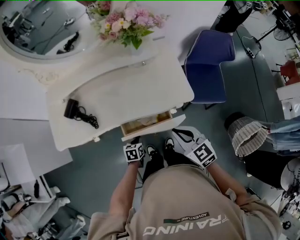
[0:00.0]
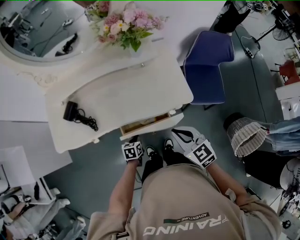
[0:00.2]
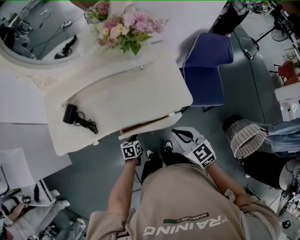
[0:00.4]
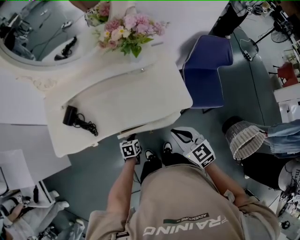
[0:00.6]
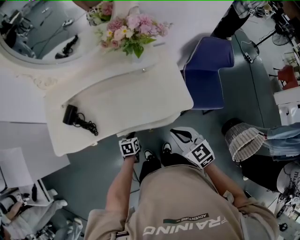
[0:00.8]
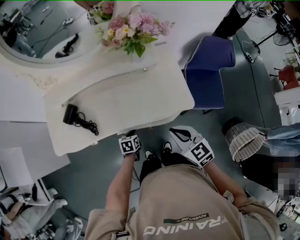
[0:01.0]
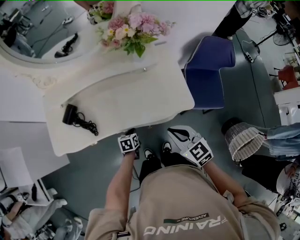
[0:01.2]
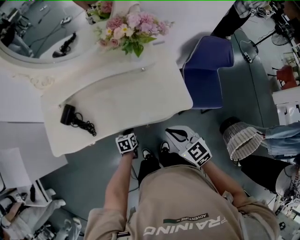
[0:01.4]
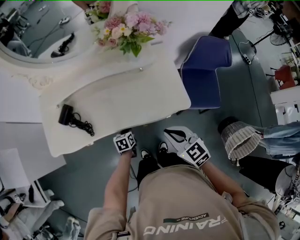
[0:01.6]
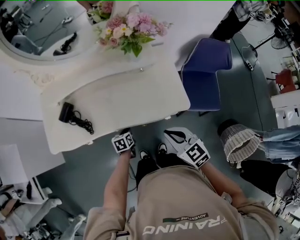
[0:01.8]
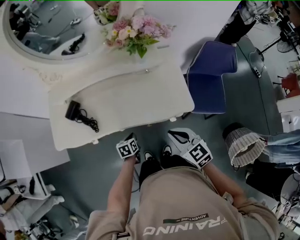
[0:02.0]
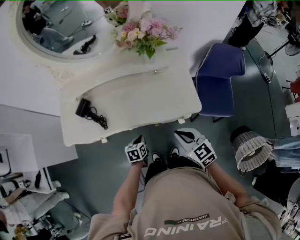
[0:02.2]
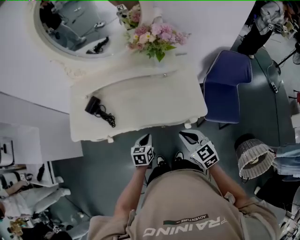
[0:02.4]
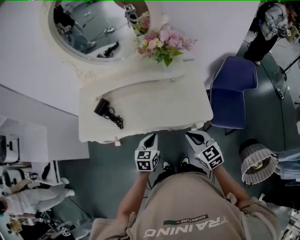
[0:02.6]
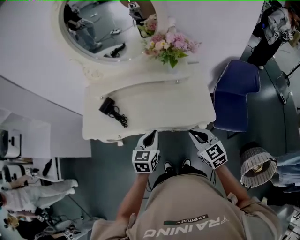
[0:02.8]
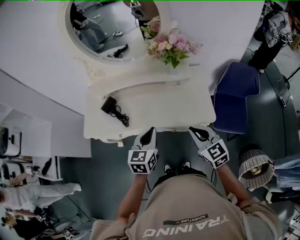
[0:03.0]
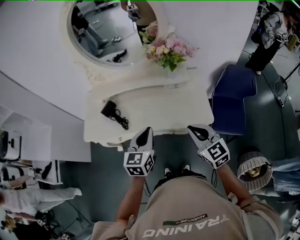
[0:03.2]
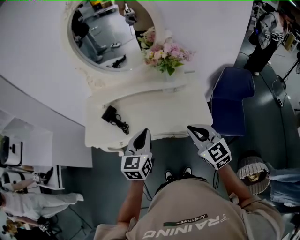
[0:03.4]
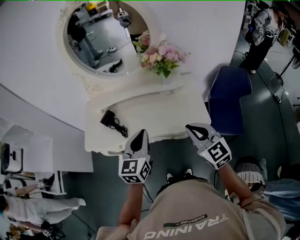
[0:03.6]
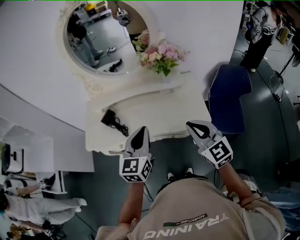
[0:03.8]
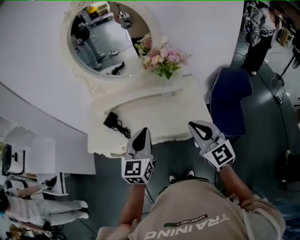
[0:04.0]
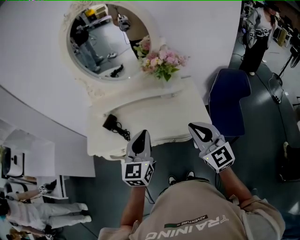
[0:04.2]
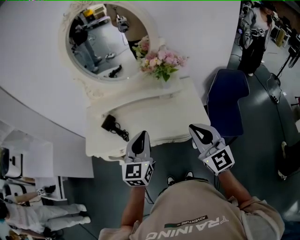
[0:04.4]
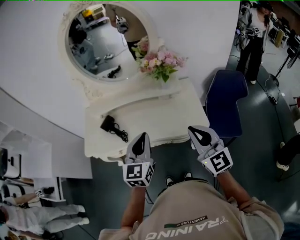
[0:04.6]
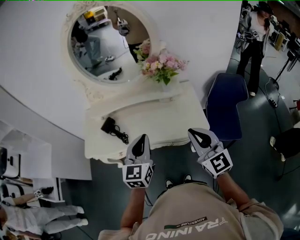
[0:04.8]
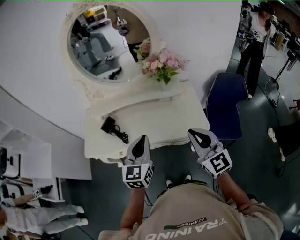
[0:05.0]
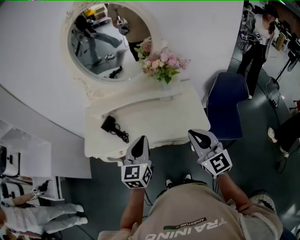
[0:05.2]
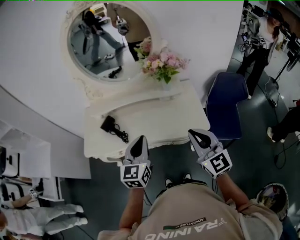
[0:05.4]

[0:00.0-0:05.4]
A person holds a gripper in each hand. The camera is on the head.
0:00.0 to 0:01.4: The right gripper changes place by roughly 5 cm, while the left gripper goes some 10 cm forward.
0:01.4 to 0:02.8: The left gripper goes approximately 25 cm upward, and changes its angle by about 30 degrees.
0:02.8 to 0:04.0: Both grippers travel together upward, some 15 cm. The right gripper turns by about 20 degrees, while the left gripper rotates roughly 20 degrees.
0:04.0 to 0:05.4: The grippers stay close to where they were, moving slightly.

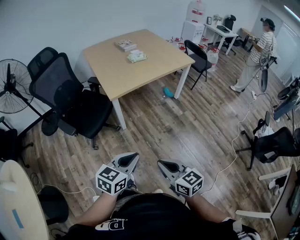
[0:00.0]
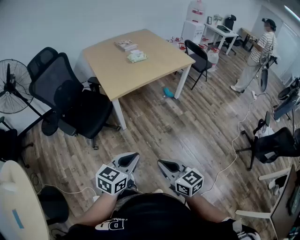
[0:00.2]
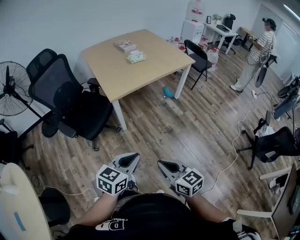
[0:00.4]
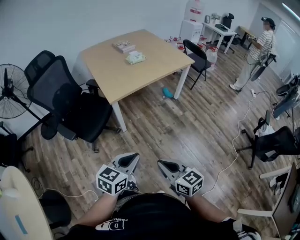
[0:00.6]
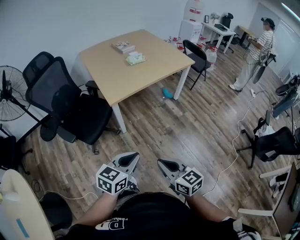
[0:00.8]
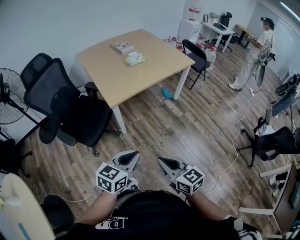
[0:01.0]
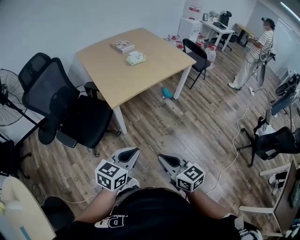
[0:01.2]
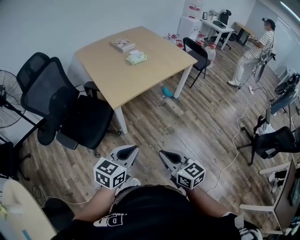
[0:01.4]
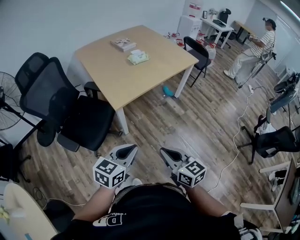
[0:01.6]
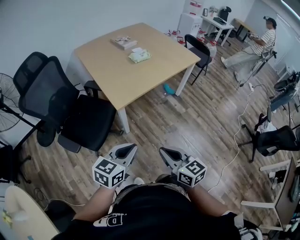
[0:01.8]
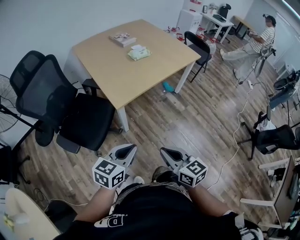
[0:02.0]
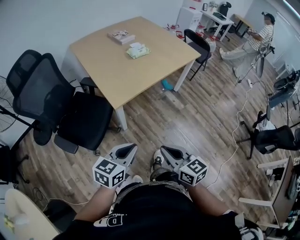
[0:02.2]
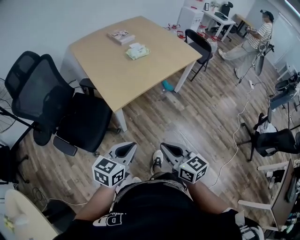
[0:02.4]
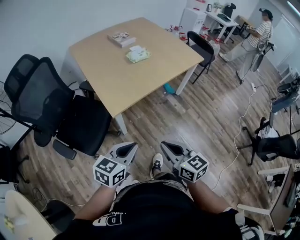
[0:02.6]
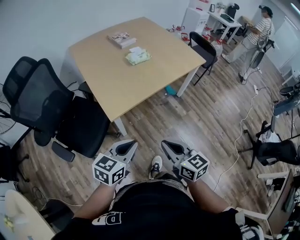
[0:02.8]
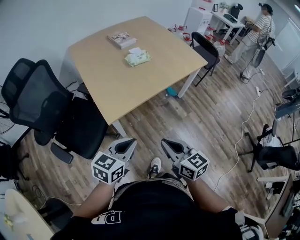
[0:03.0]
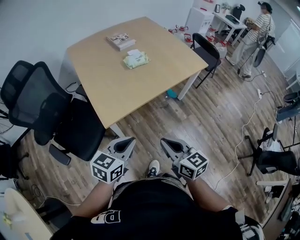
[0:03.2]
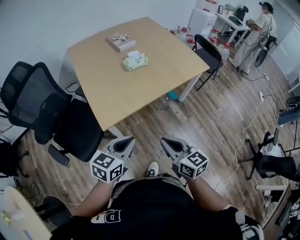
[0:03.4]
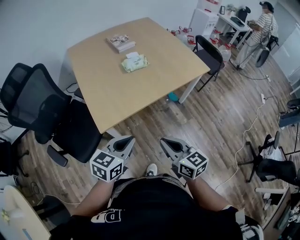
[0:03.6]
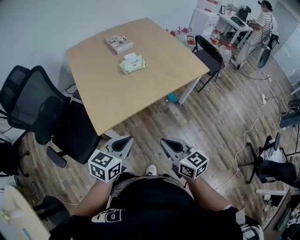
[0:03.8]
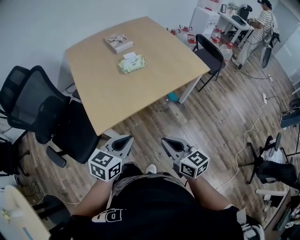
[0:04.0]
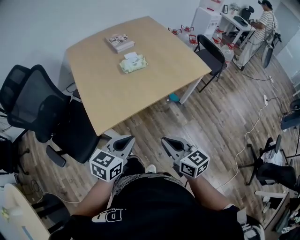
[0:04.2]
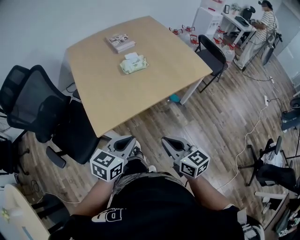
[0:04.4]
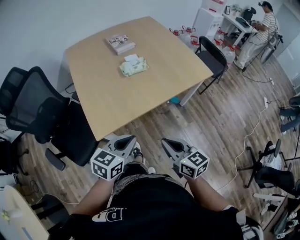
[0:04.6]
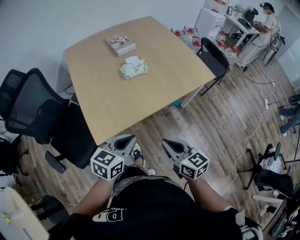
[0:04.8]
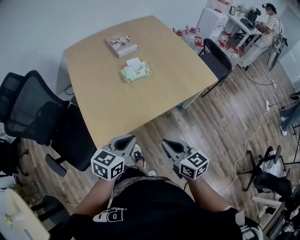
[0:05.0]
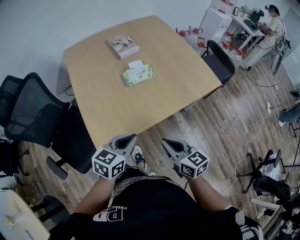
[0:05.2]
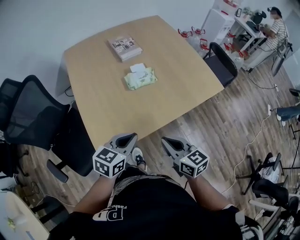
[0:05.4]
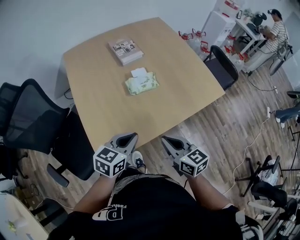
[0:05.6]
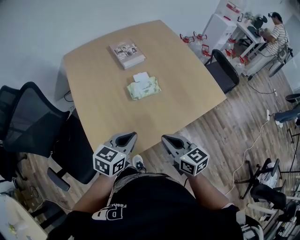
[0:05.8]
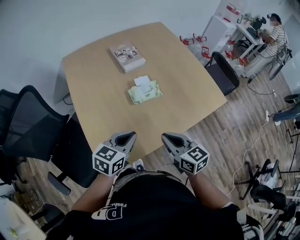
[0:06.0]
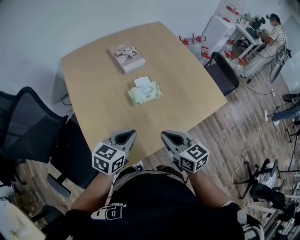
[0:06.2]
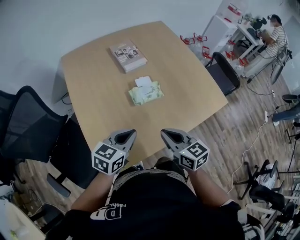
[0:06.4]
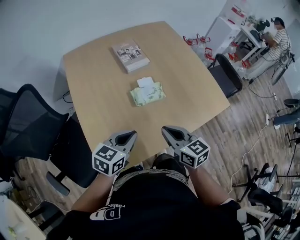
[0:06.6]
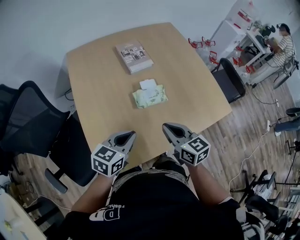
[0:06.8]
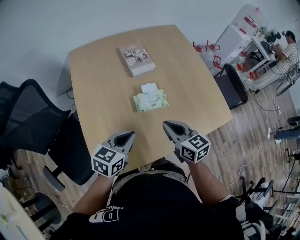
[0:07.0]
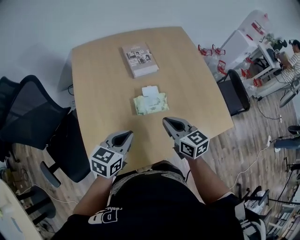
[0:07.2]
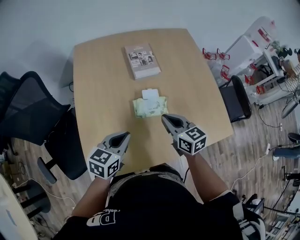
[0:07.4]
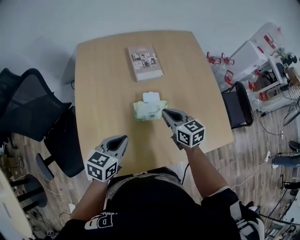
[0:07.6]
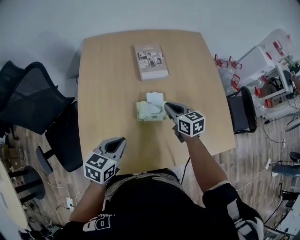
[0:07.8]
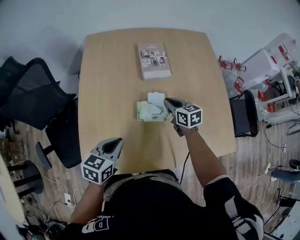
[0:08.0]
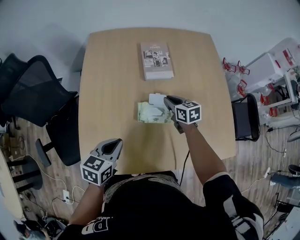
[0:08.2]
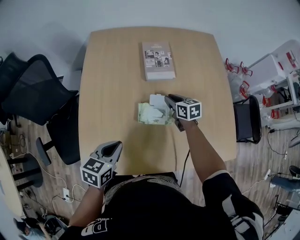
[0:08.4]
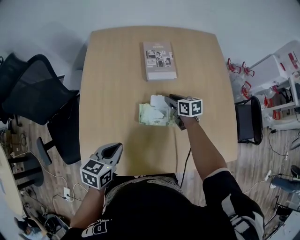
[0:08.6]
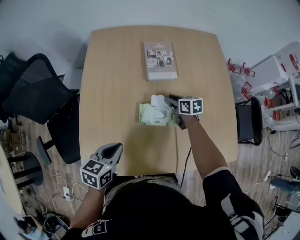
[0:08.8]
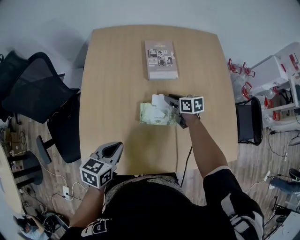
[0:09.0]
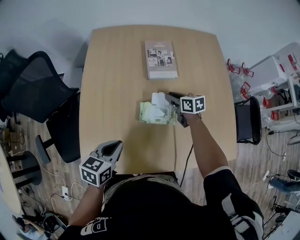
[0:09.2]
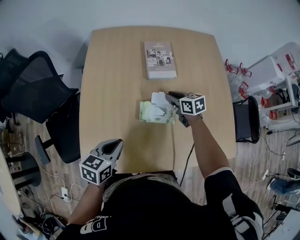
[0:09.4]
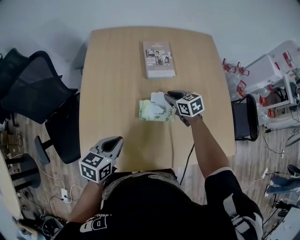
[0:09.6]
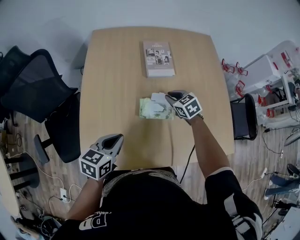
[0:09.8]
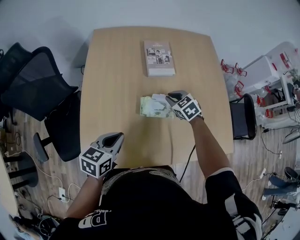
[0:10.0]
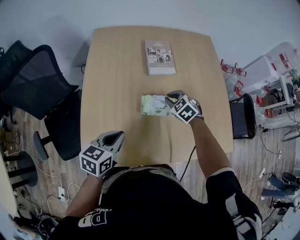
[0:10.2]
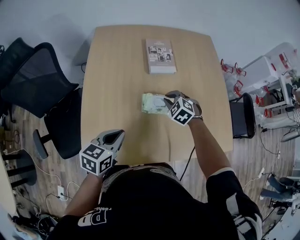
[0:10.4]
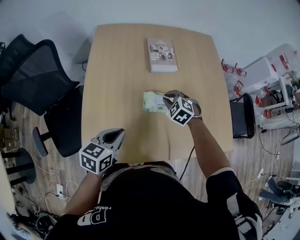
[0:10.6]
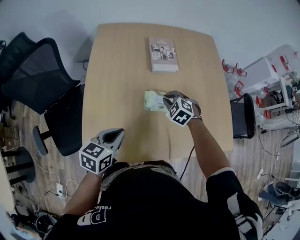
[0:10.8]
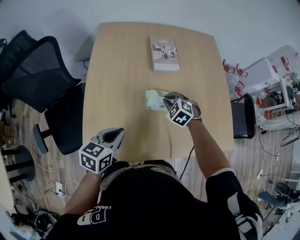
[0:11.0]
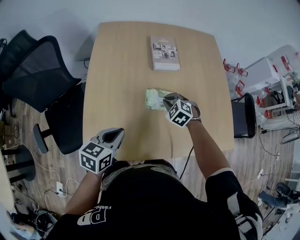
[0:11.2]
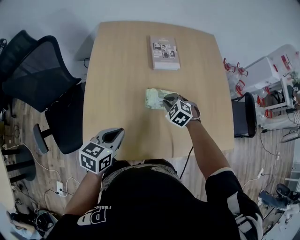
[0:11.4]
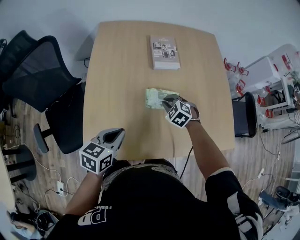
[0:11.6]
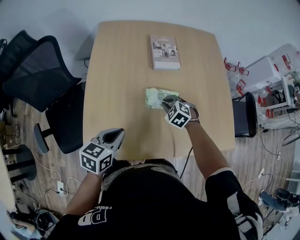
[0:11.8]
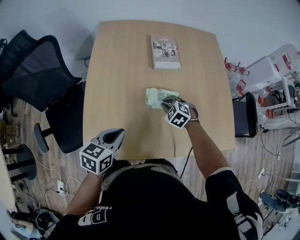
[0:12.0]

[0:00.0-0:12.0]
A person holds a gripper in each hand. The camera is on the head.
0:00.0 to 0:01.6: Both grippers move forward and to the left, some 20 cm.
0:01.6 to 0:03.0: The grippers both shift forward by roughly 20 cm.
0:03.0 to 0:04.4: The grippers both shift forward and to the right by approximately 15 cm.
0:04.4 to 0:06.0: The two grippers go about 25 cm forward.
0:06.0 to 0:07.6: The right gripper heads forward, covering roughly 25 cm; the left gripper shifts approximately 10 cm forward, and turns by roughly 20 degrees.
0:07.6 to 0:09.0: The right gripper travels downward and forward by roughly 20 cm, swivels about 20 degrees, and opens.
0:09.0 to 0:10.4: The right gripper heads backward and upward, covering about 10 cm, and twists some 60 degrees counterclockwise, seen from behind.
0:10.4 to 0:12.0: The right gripper changes place by approximately 5 cm.

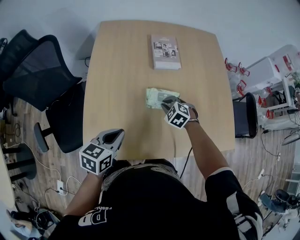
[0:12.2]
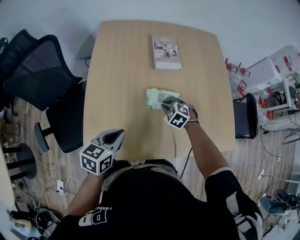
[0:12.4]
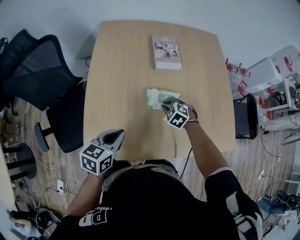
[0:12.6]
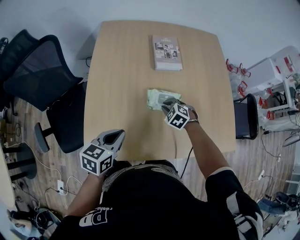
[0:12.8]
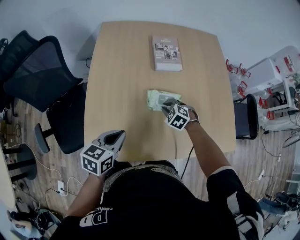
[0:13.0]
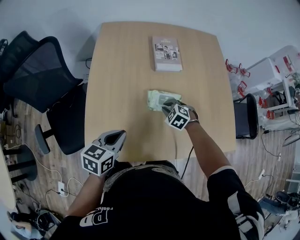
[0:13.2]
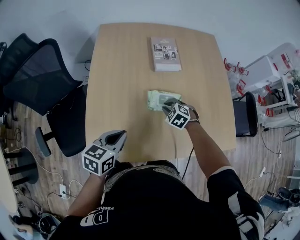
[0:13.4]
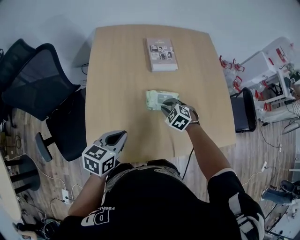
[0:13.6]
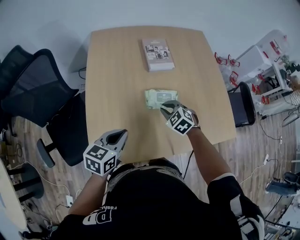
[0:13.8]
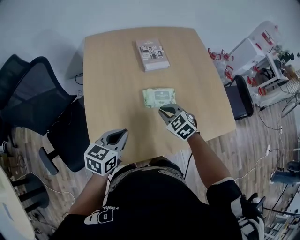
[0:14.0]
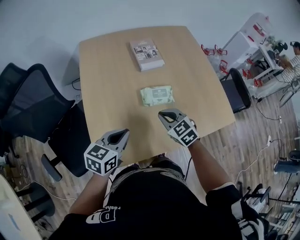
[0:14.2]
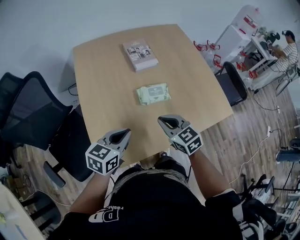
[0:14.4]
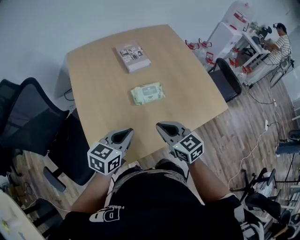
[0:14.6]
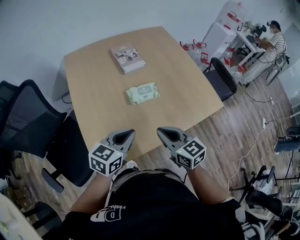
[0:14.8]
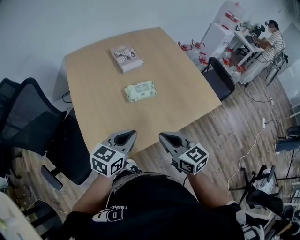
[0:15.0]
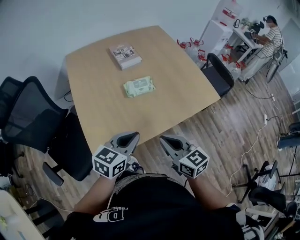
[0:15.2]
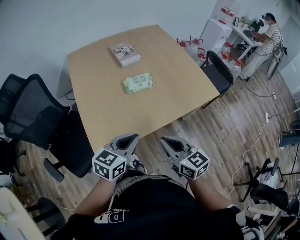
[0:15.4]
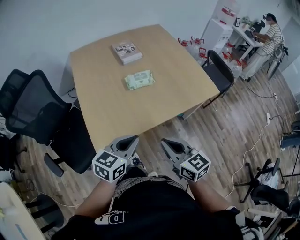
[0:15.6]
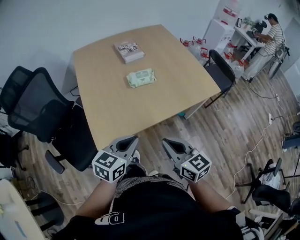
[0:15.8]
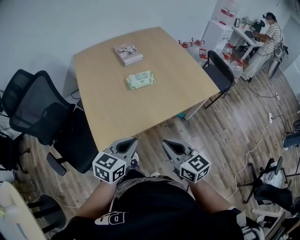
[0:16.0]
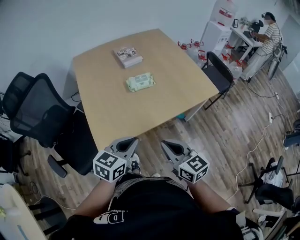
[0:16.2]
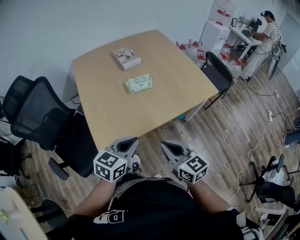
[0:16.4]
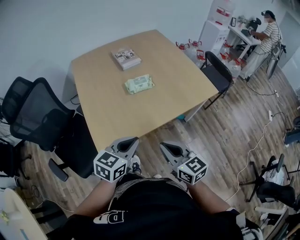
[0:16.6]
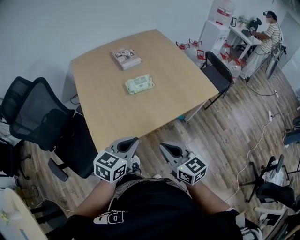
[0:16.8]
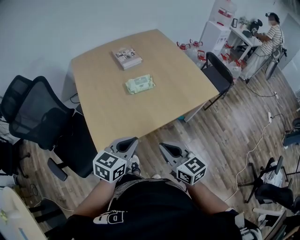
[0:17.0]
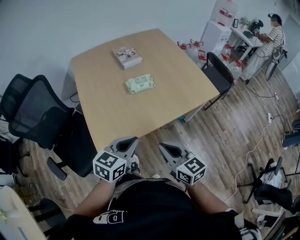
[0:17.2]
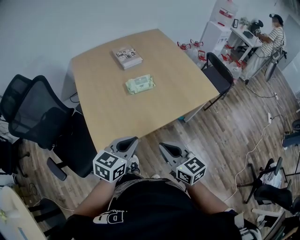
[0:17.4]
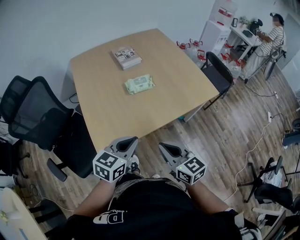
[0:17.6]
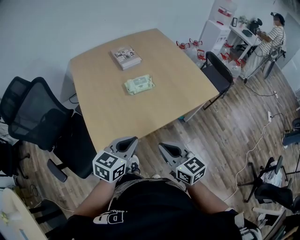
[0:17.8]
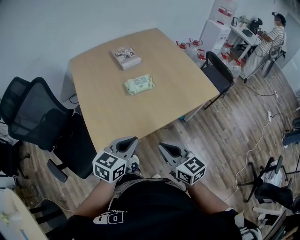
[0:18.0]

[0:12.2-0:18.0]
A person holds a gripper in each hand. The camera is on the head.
0:12.2 to 0:13.6: The grippers stay close to where they were, moving slightly.
0:13.6 to 0:15.0: The right gripper is displaced backward and upward by some 35 cm, and tips its fingers upward by approximately 40 degrees, while the left gripper is displaced backward, to the right and upward by approximately 15 cm, and rotates roughly 30 degrees.
0:15.0 to 0:16.6: The grippers both shift backward by approximately 15 cm.
0:16.6 to 0:18.0: There are only small adjustments of the grippers.
